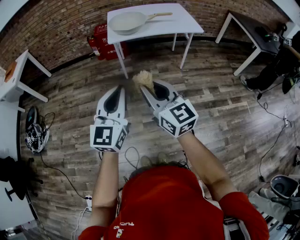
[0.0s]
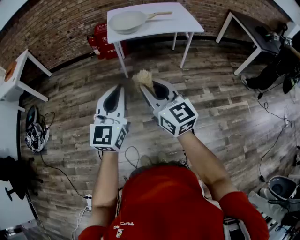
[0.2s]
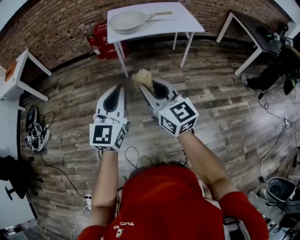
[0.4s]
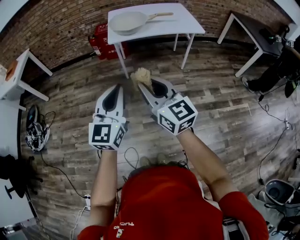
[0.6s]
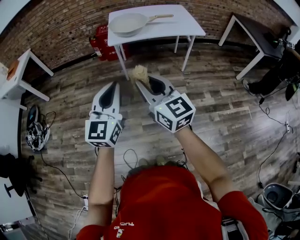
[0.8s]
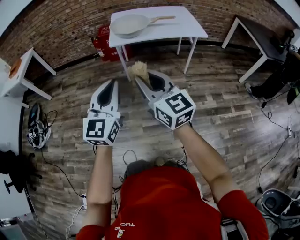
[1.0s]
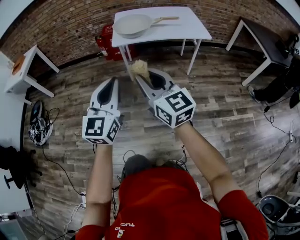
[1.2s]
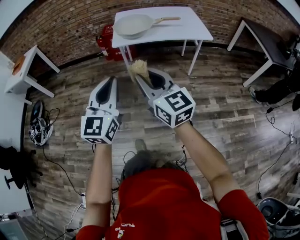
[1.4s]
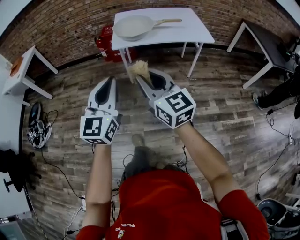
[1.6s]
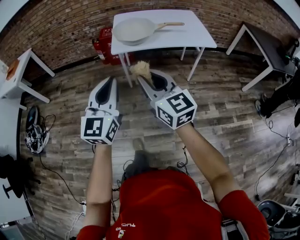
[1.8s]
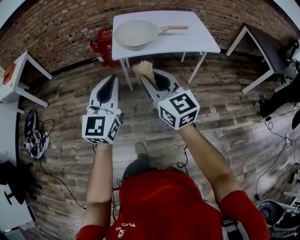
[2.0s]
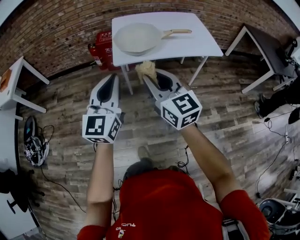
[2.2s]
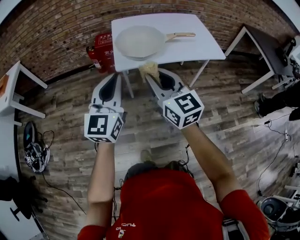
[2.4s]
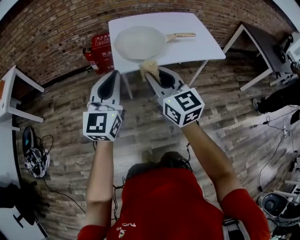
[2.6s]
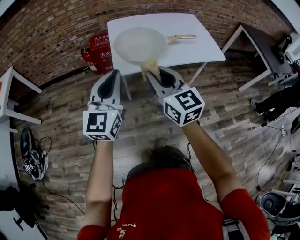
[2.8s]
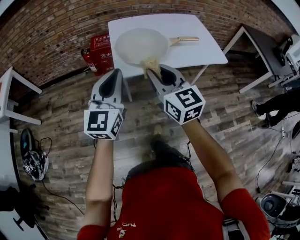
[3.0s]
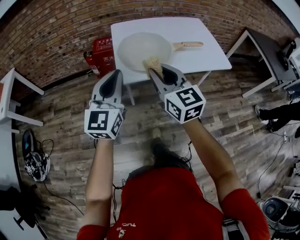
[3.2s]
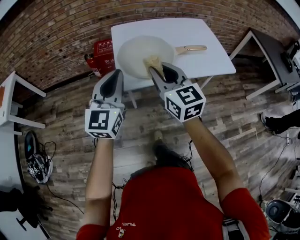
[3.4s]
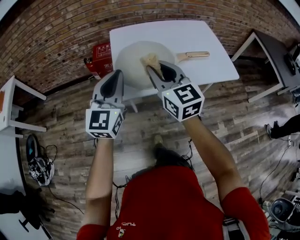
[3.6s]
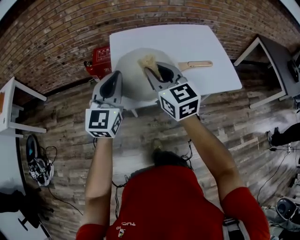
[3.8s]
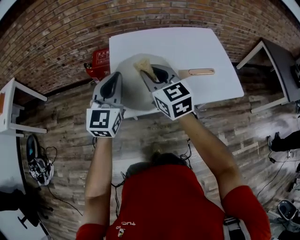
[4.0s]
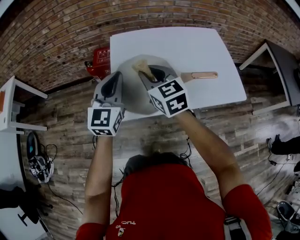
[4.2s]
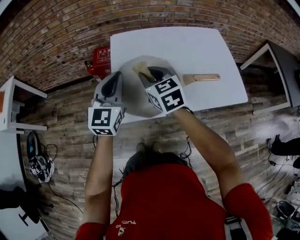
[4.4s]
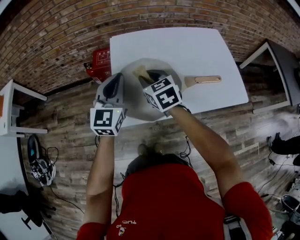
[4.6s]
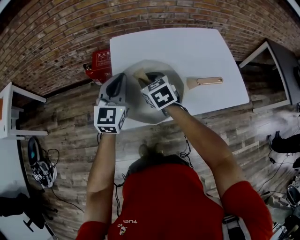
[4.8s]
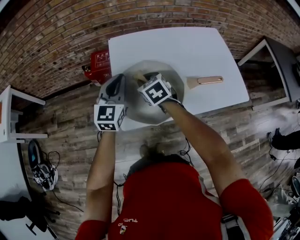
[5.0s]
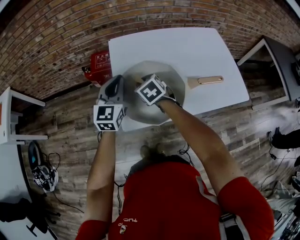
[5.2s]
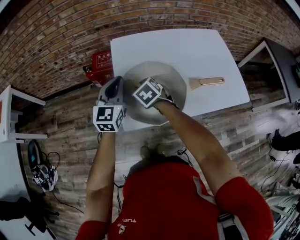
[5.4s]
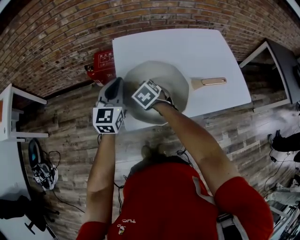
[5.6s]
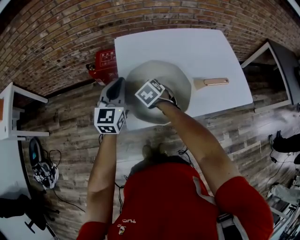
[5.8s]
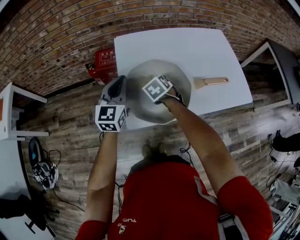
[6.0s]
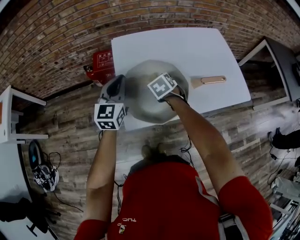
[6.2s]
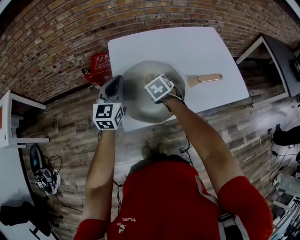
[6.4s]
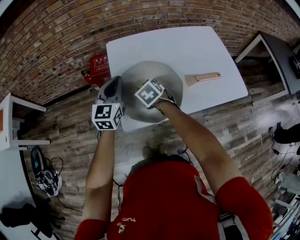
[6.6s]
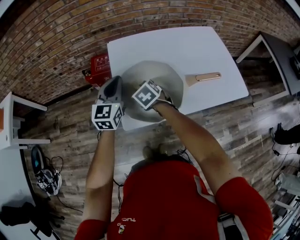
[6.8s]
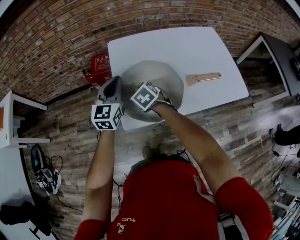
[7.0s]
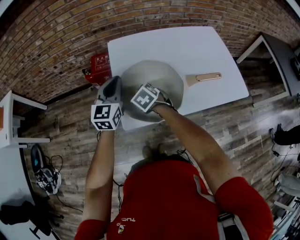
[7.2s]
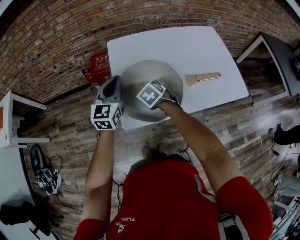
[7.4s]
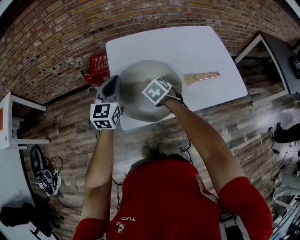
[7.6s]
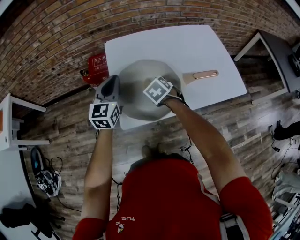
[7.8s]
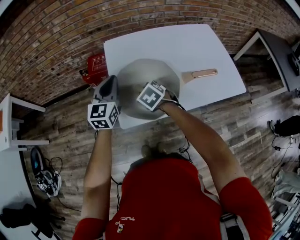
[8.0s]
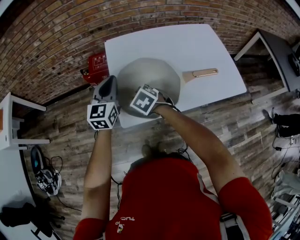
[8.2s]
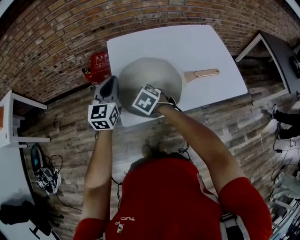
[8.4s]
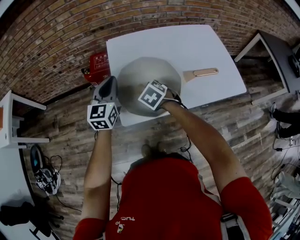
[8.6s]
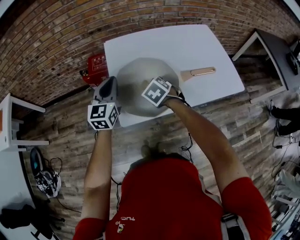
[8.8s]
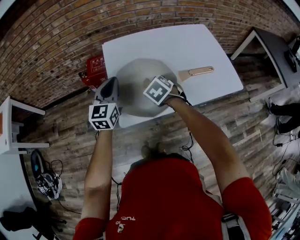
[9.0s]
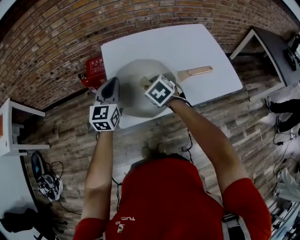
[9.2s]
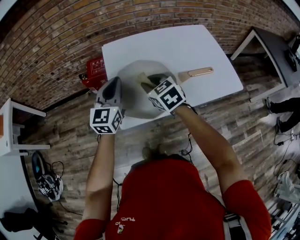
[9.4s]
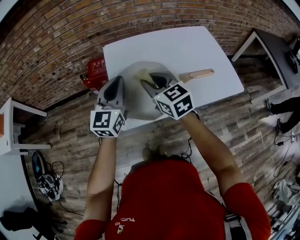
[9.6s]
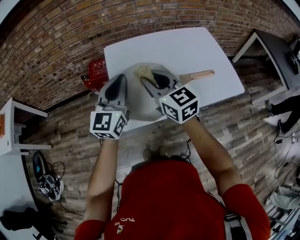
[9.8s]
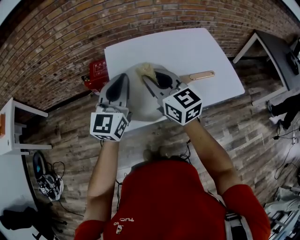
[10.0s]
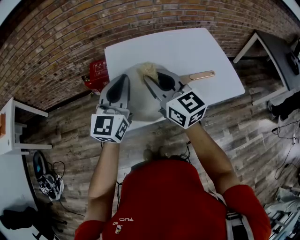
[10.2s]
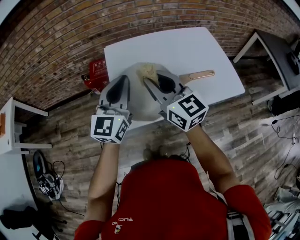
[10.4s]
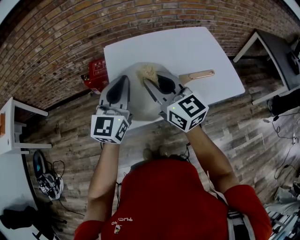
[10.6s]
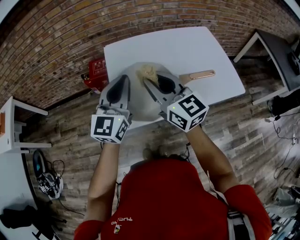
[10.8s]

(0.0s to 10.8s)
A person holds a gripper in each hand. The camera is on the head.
0.0s - 1.6s: Both grippers move forward, some 10 cm.
1.6s - 3.0s: The two grippers go roughly 35 cm forward.
3.0s - 4.6s: Both grippers move forward, roughly 35 cm. The right gripper rotates roughly 30 degrees.
4.6s - 6.2s: The right gripper shifts about 15 cm downward, and rotates about 30 degrees. Meanwhile the left gripper goes roughly 5 cm downward.
6.2s - 7.8s: The right gripper goes to the left and returns, about 10 cm each way.
7.8s - 9.2s: The right gripper moves upward, roughly 5 cm, and travels to the left and back again, about 10 cm each way.
9.2s - 10.8s: The left gripper travels upward and to the right by some 10 cm, while the right gripper shifts about 20 cm upward, and points its fingers roughly 50 degrees further upward.

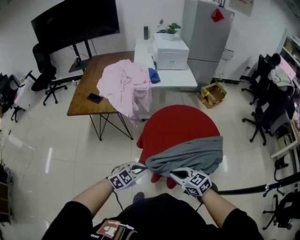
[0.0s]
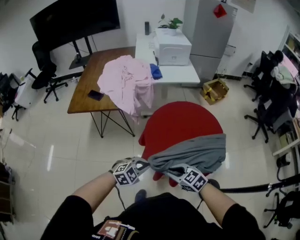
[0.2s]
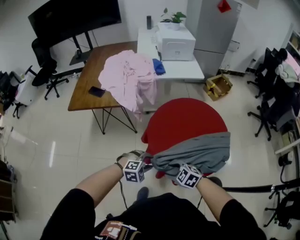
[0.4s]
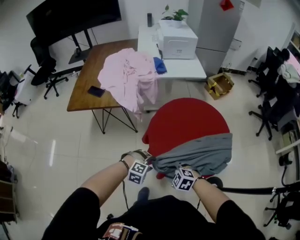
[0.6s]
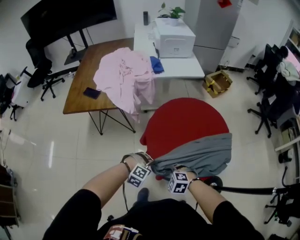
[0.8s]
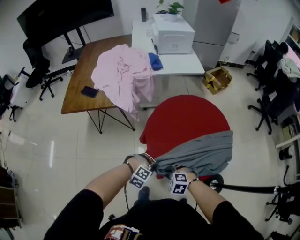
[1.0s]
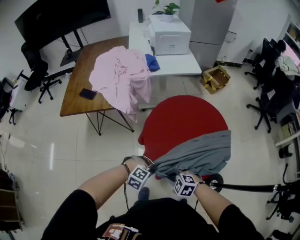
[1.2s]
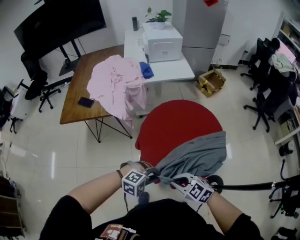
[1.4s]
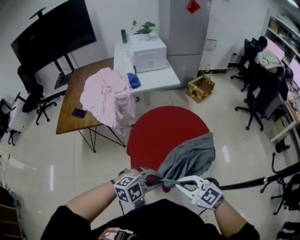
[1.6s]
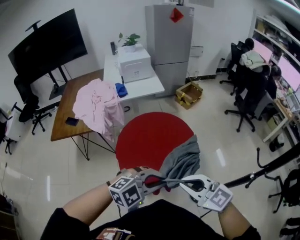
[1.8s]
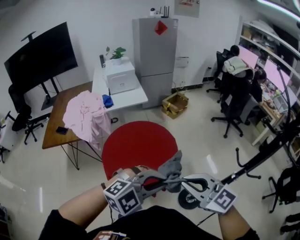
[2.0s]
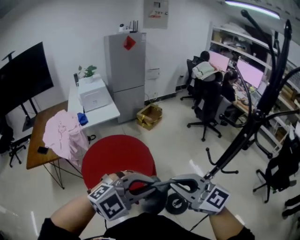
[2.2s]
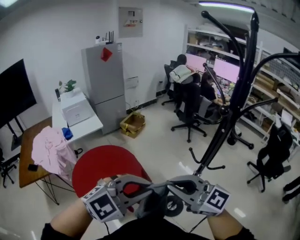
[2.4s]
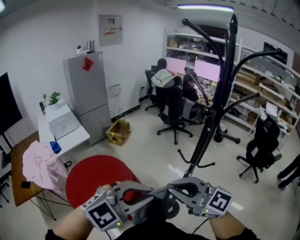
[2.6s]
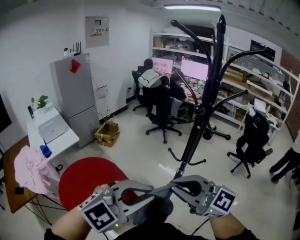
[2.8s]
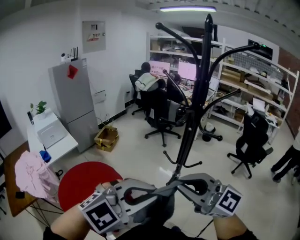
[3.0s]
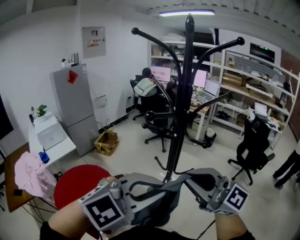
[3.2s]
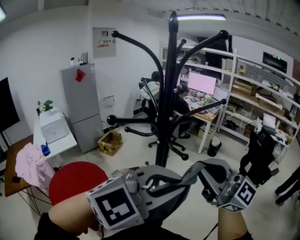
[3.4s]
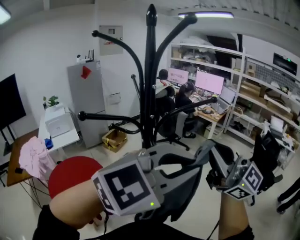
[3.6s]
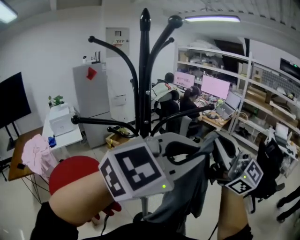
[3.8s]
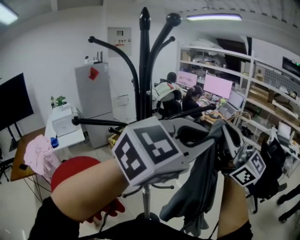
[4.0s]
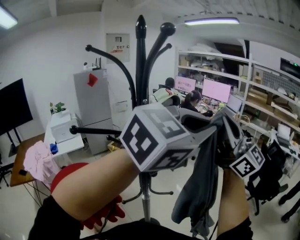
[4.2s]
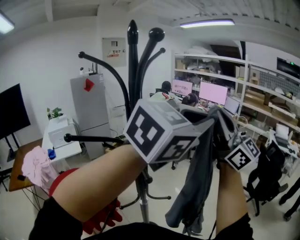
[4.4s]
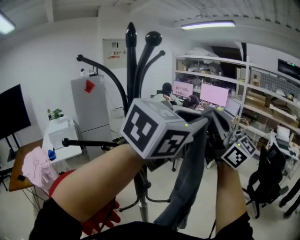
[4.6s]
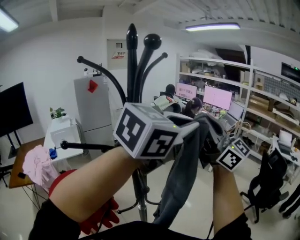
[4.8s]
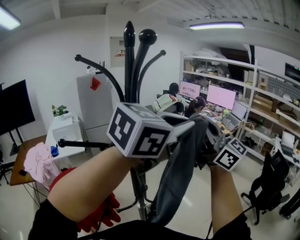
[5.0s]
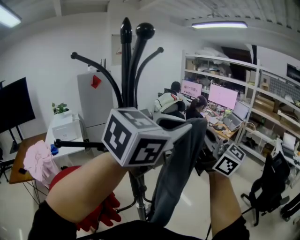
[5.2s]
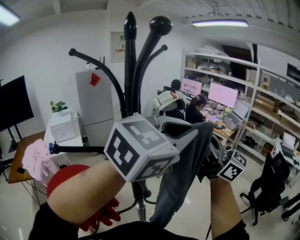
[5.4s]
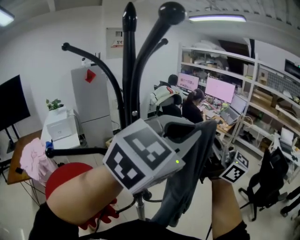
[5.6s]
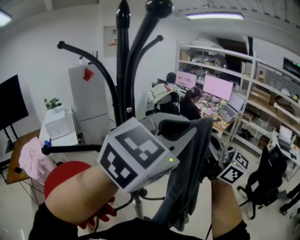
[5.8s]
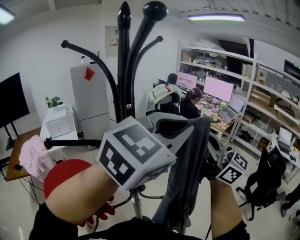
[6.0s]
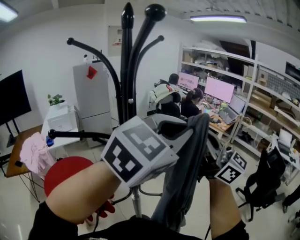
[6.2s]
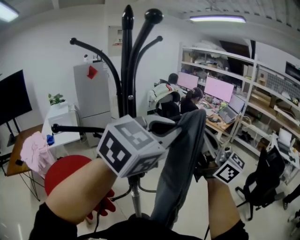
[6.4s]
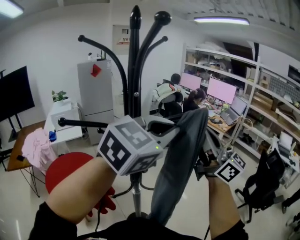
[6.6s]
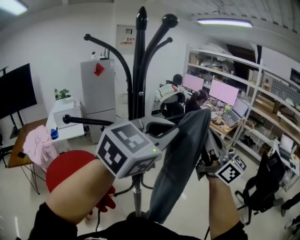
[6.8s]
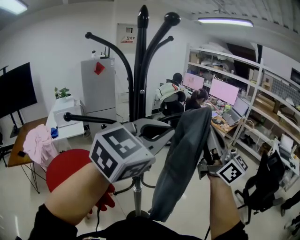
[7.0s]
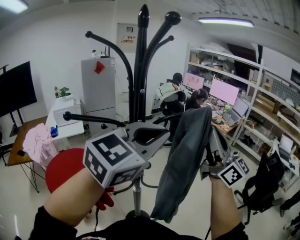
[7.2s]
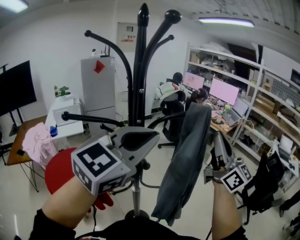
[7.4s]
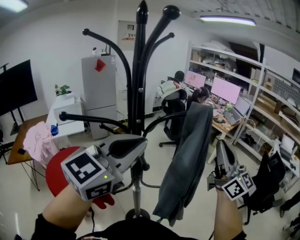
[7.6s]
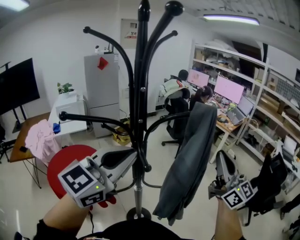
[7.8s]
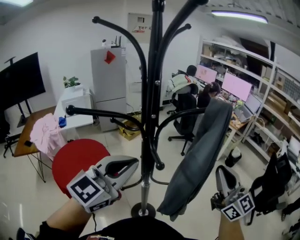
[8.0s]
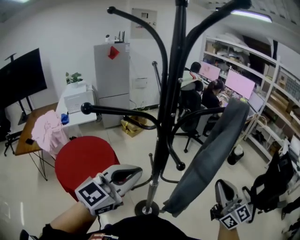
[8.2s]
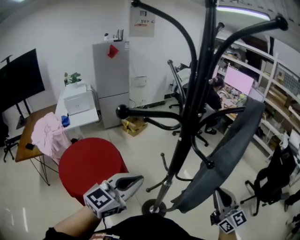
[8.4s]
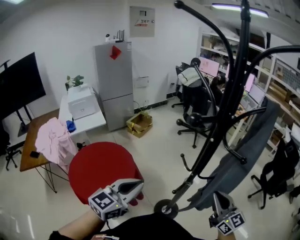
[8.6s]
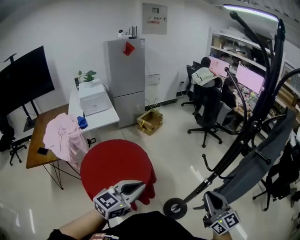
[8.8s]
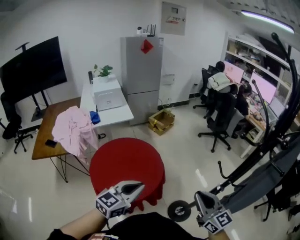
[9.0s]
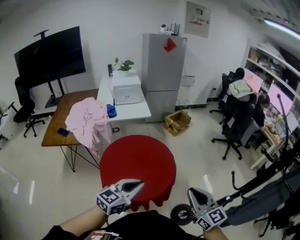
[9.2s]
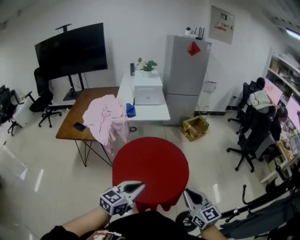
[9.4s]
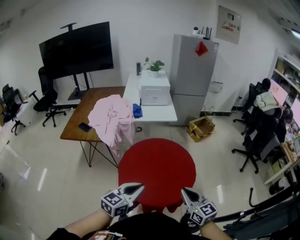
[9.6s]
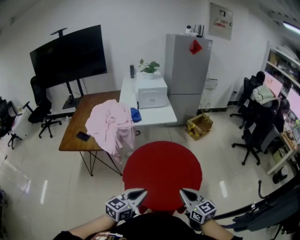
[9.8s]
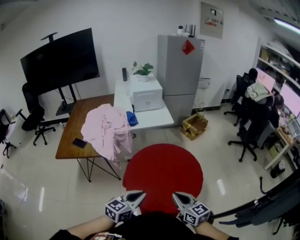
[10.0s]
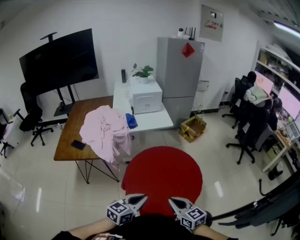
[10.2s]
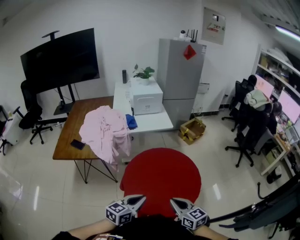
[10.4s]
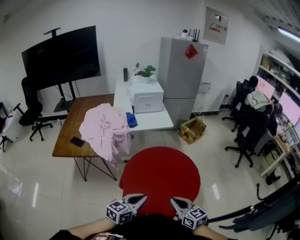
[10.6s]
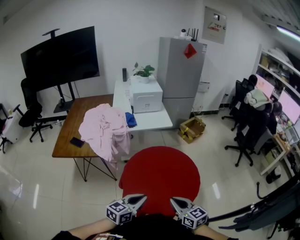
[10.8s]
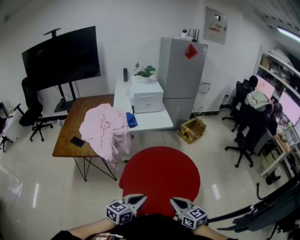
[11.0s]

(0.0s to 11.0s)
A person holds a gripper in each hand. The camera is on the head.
0.0s - 1.6s: The right gripper travels downward and back again, approximately 15 cm each way, and opens, then closes once more, while the left gripper changes place by about 15 cm, swivels some 30 degrees, and opens, then closes again.
1.6s - 3.2s: Both grippers are carried about 50 cm. The left gripper swivels some 40 degrees; the right gripper tilts its fingers approximately 40 degrees upward.
3.2s - 4.8s: The left gripper travels to the right, forward and upward by about 35 cm, and swivels roughly 30 degrees; the right gripper is displaced forward, to the right and upward by some 35 cm, and changes its angle by some 20 degrees.
4.8s - 6.2s: The right gripper heads downward, covering about 5 cm.
6.2s - 7.8s: The right gripper is displaced downward and to the right by some 10 cm. The left gripper shifts roughly 15 cm to the left and downward, and turns by approximately 20 degrees.
7.8s - 9.4s: The two grippers travel together, about 60 cm. The right gripper points its fingers about 30 degrees further downward; the left gripper rotates some 40 degrees.
9.4s - 11.0s: Both grippers travel together to the left and downward, approximately 15 cm.

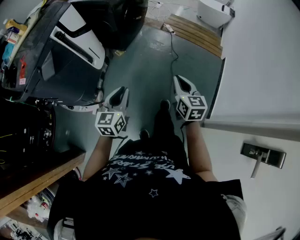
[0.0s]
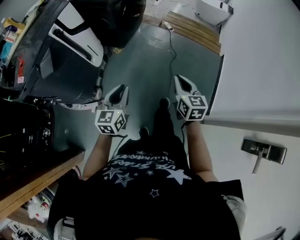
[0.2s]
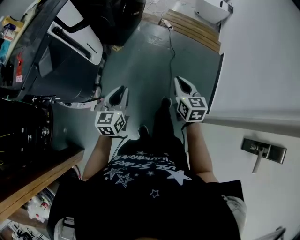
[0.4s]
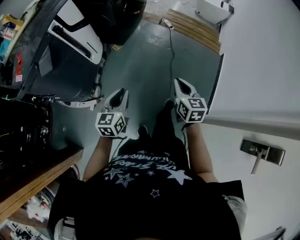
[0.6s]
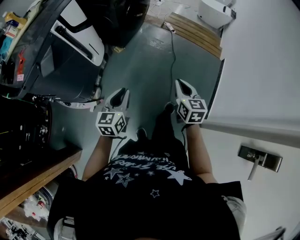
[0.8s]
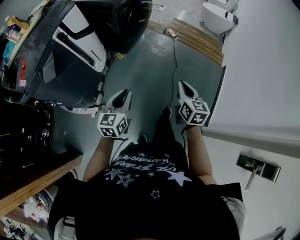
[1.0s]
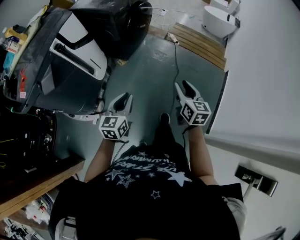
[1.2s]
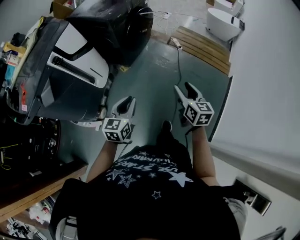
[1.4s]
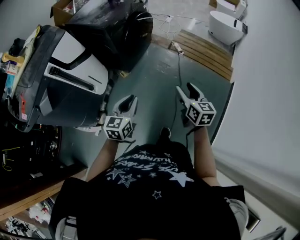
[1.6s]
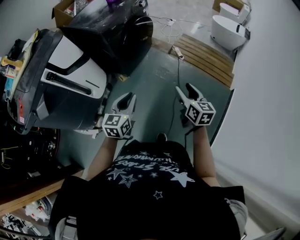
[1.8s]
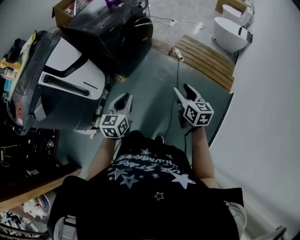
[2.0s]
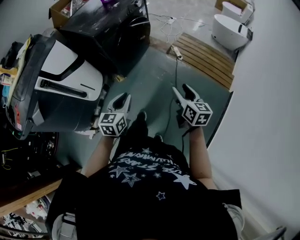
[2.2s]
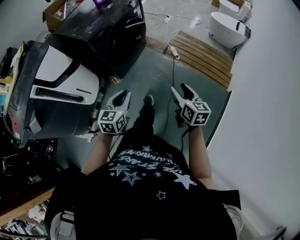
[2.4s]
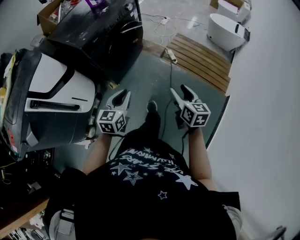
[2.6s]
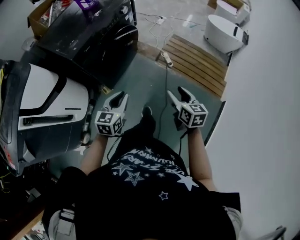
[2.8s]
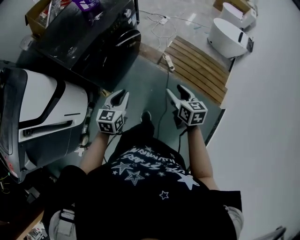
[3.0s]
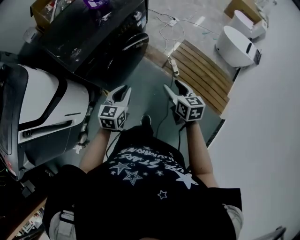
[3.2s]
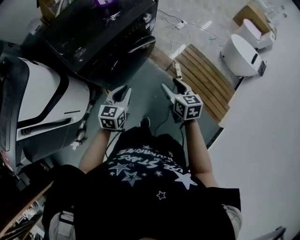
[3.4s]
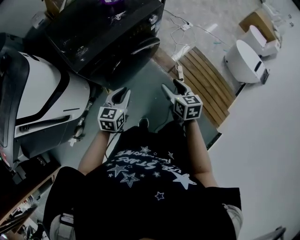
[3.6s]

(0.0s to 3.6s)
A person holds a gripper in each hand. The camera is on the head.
0.0s - 1.8s: Both grippers move forward and to the right, approximately 30 cm. The right gripper opens.
1.8s - 3.6s: Both grippers are carried forward, about 50 cm. The right gripper rotates some 30 degrees.
